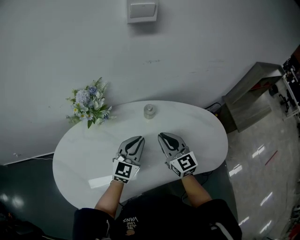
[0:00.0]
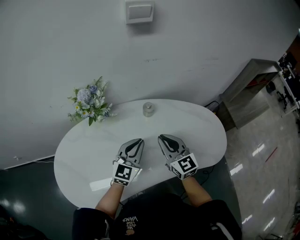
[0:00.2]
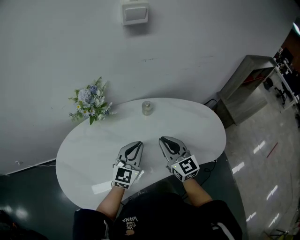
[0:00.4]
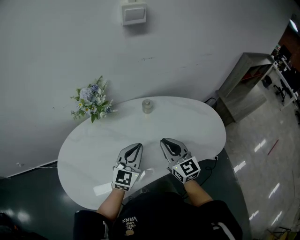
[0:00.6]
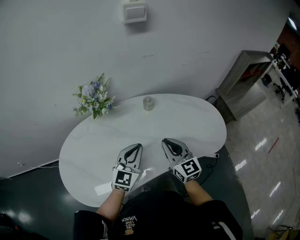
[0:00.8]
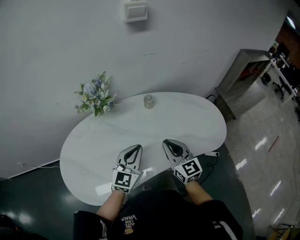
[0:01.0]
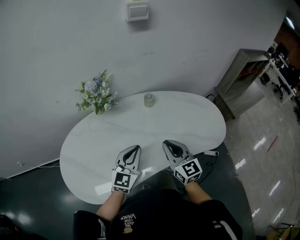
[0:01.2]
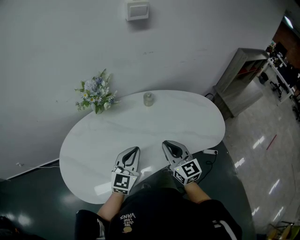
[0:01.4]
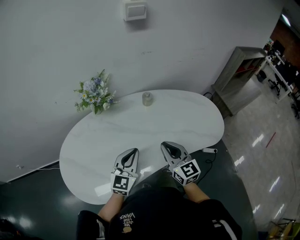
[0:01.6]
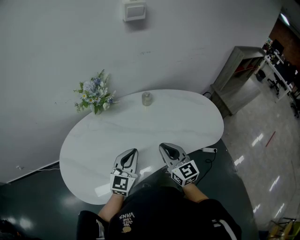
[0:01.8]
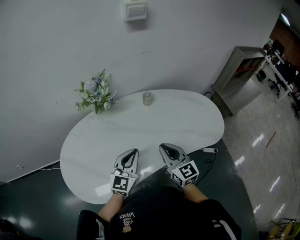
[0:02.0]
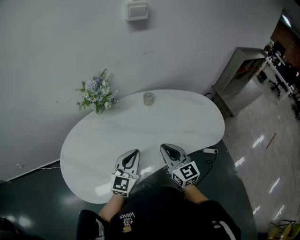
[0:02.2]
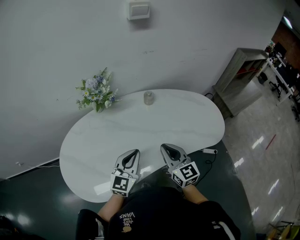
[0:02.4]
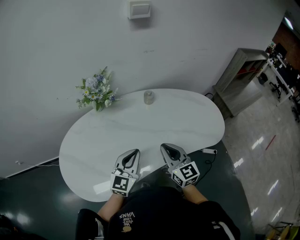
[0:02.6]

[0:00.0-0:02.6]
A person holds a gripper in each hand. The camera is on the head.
0:00.0 to 0:01.2: Both grippers move backward, roughly 15 cm.
0:01.2 to 0:02.6: The grippers move only a little.

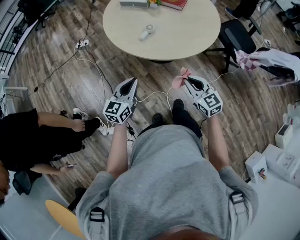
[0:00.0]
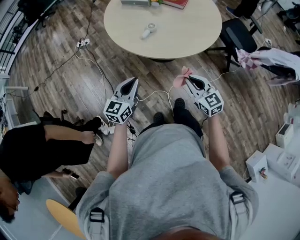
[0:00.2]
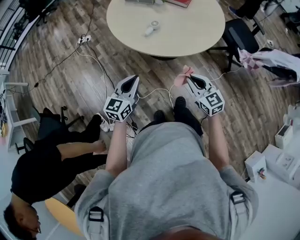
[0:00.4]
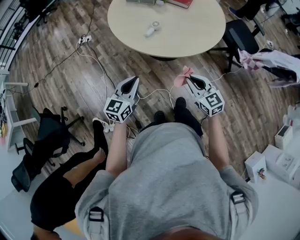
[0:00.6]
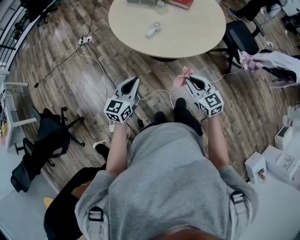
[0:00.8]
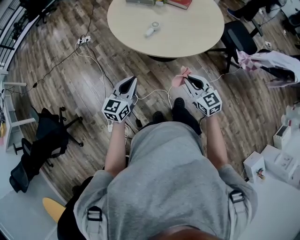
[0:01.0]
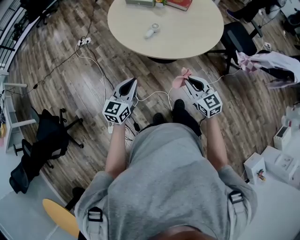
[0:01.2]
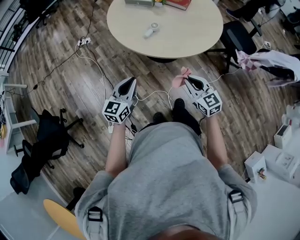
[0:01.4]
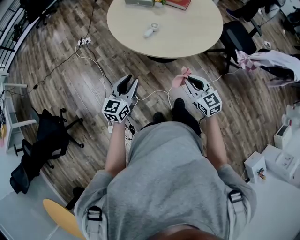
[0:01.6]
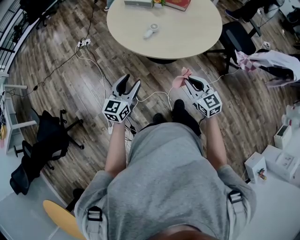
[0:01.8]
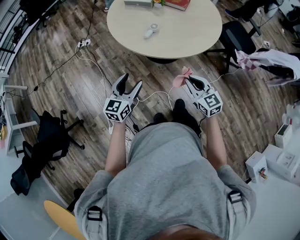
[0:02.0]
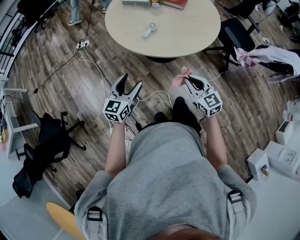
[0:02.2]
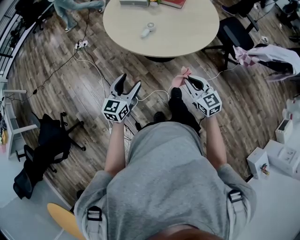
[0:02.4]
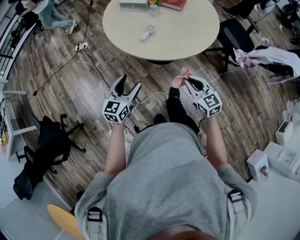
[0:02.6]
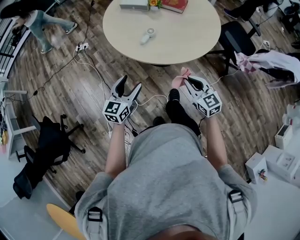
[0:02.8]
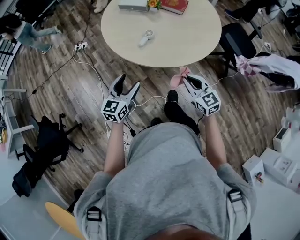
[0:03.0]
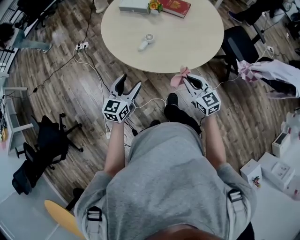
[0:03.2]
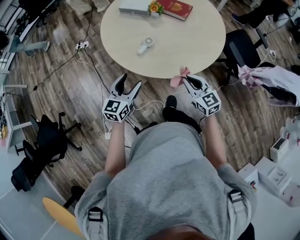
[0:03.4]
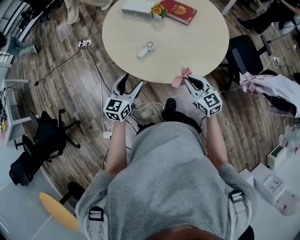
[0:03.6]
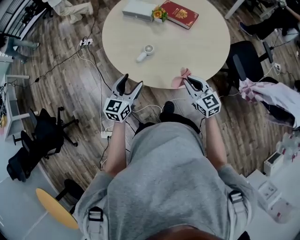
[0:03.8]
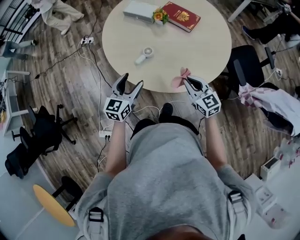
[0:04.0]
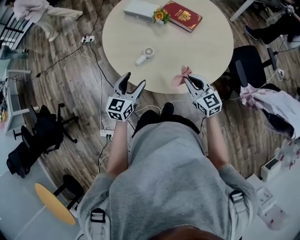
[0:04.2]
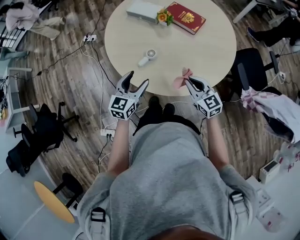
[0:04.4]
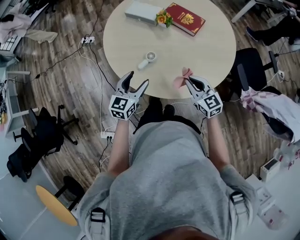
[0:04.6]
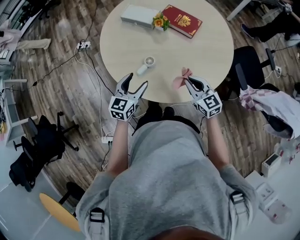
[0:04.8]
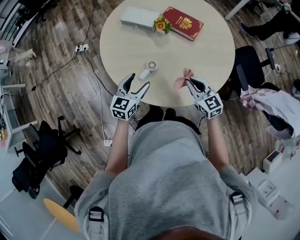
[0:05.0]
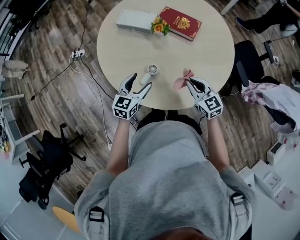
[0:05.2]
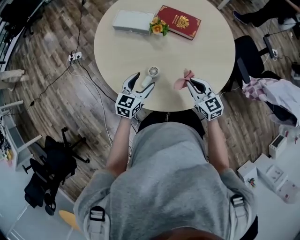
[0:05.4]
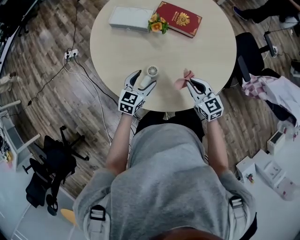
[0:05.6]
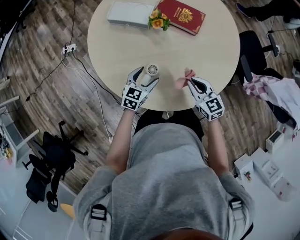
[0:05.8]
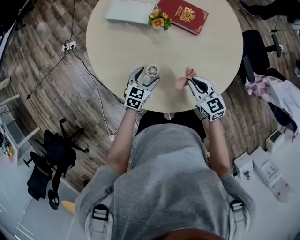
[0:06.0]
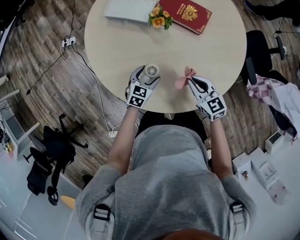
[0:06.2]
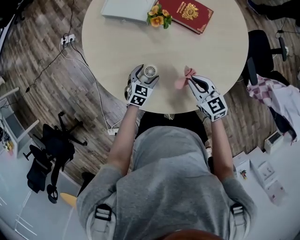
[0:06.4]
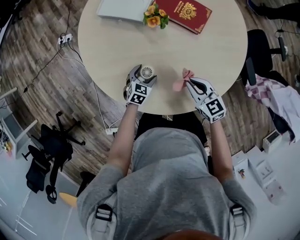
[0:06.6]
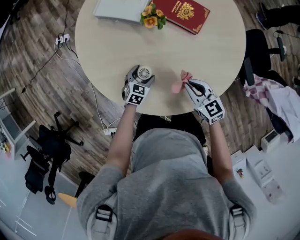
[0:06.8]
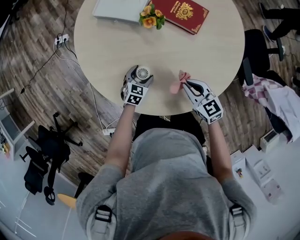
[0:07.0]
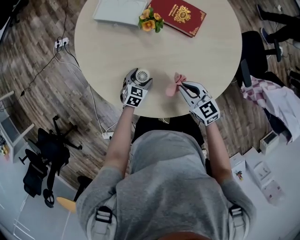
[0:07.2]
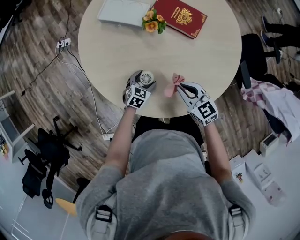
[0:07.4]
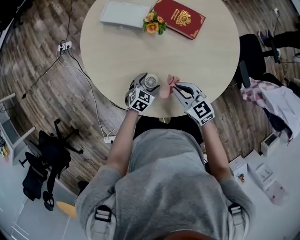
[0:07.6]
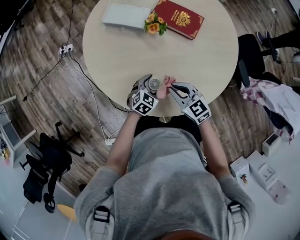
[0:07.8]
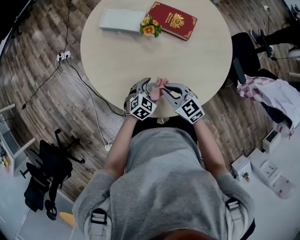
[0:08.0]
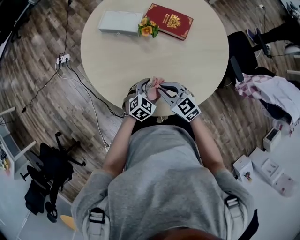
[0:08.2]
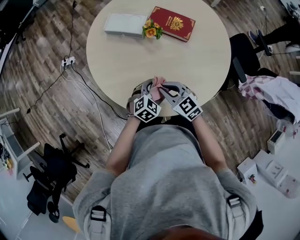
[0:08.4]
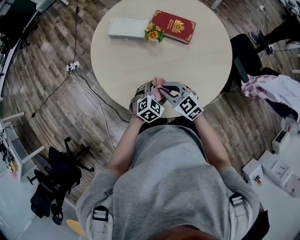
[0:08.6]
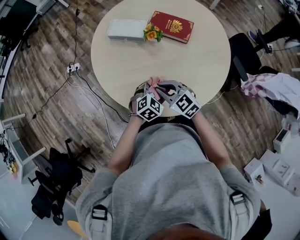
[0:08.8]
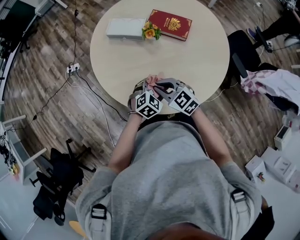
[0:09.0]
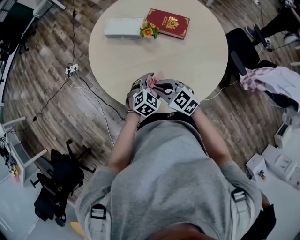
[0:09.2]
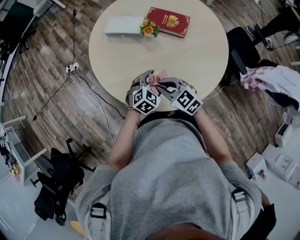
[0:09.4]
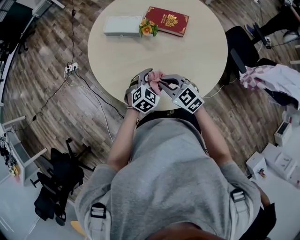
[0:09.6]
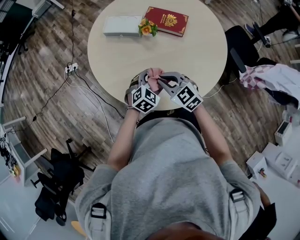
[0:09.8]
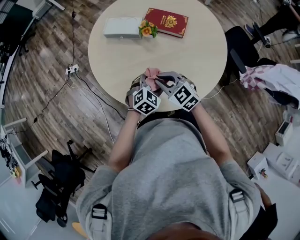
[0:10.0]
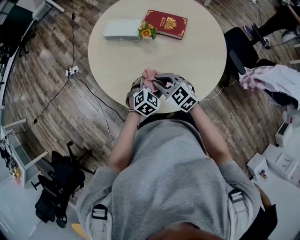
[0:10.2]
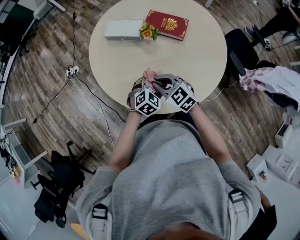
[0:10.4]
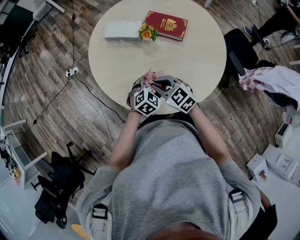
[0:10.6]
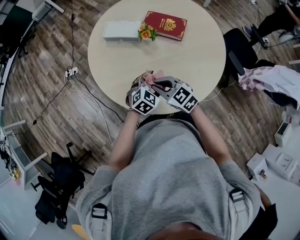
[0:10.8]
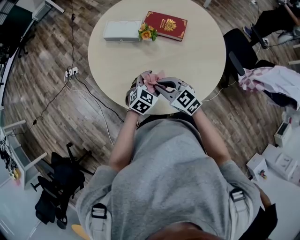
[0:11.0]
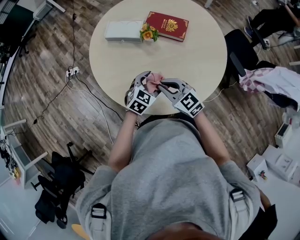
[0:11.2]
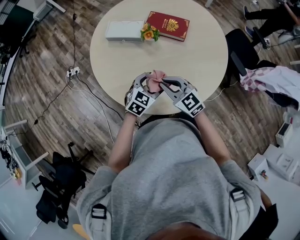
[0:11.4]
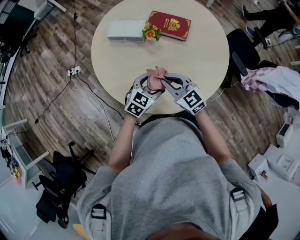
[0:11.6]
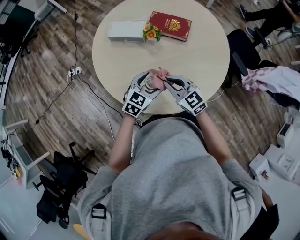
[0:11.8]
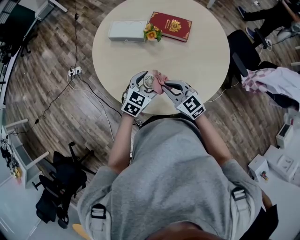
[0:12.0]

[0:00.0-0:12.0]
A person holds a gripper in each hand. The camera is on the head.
0:00.0 to 0:01.6: The grippers move only a little.
0:01.6 to 0:03.0: Both grippers move forward, approximately 10 cm. The left gripper opens up.
0:03.0 to 0:04.4: The grippers both shift forward and to the right by some 20 cm.
0:04.4 to 0:06.0: The right gripper moves forward and downward, about 15 cm; the left gripper goes approximately 25 cm downward and forward, and rotates about 30 degrees.
0:06.0 to 0:07.6: The left gripper heads downward, covering roughly 5 cm.
0:07.6 to 0:09.0: The right gripper shifts about 10 cm to the left and upward, while the left gripper moves upward and backward, approximately 15 cm, and changes its angle by about 20 degrees.
0:09.0 to 0:10.4: The grippers make only small movements.
0:10.4 to 0:12.0: The left gripper shifts some 5 cm to the left.

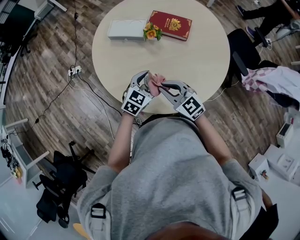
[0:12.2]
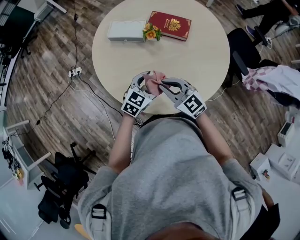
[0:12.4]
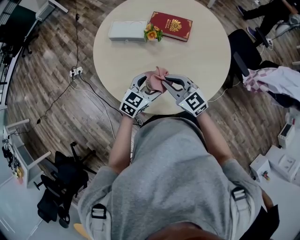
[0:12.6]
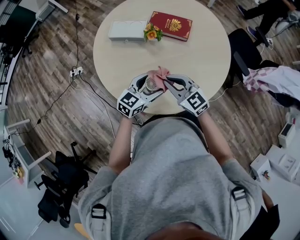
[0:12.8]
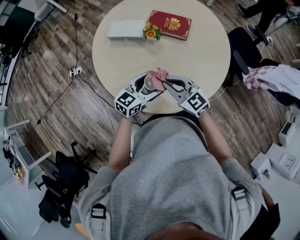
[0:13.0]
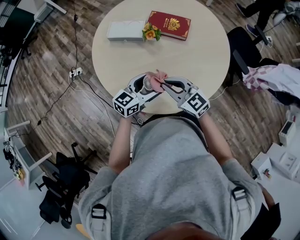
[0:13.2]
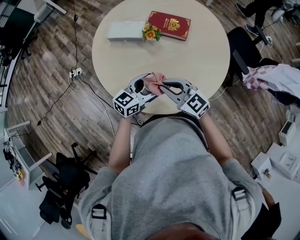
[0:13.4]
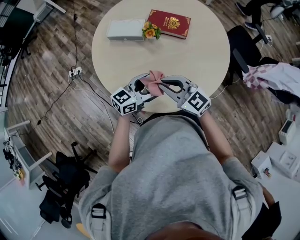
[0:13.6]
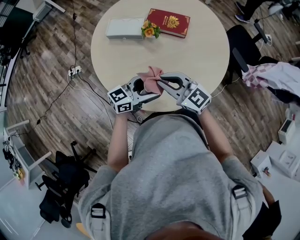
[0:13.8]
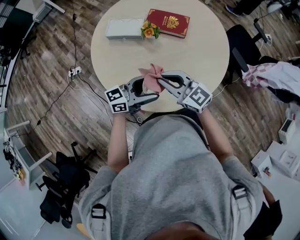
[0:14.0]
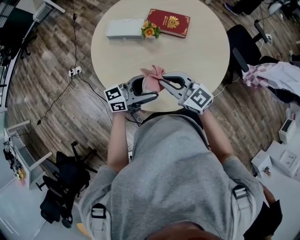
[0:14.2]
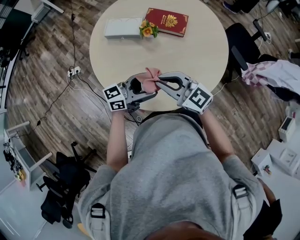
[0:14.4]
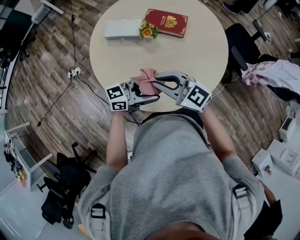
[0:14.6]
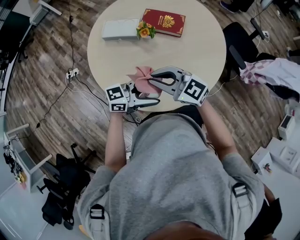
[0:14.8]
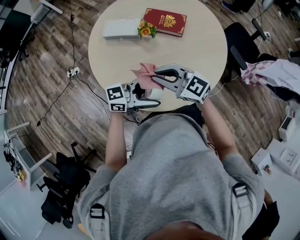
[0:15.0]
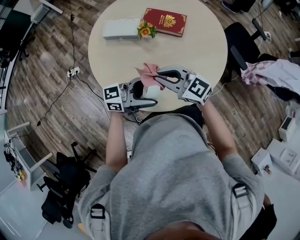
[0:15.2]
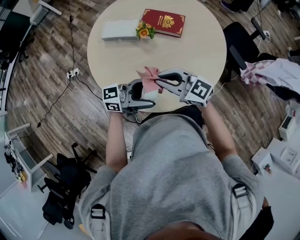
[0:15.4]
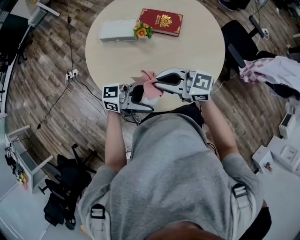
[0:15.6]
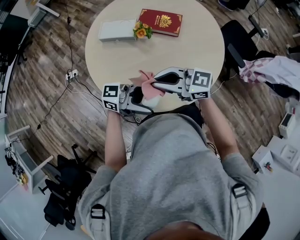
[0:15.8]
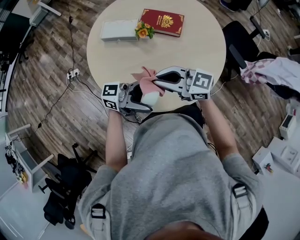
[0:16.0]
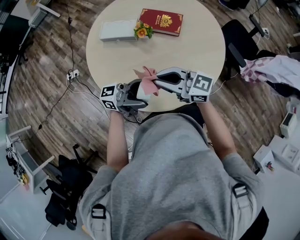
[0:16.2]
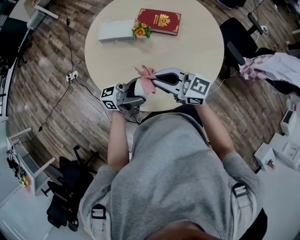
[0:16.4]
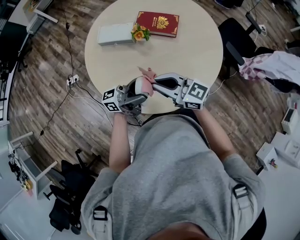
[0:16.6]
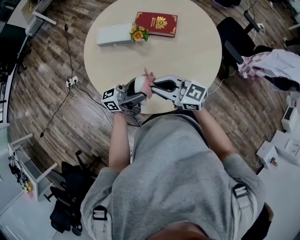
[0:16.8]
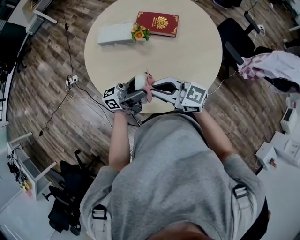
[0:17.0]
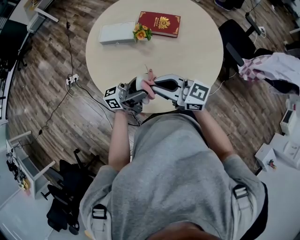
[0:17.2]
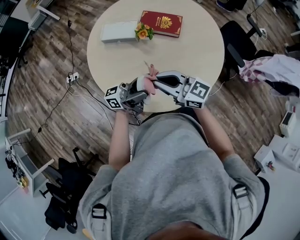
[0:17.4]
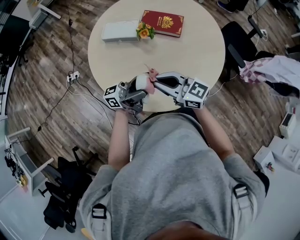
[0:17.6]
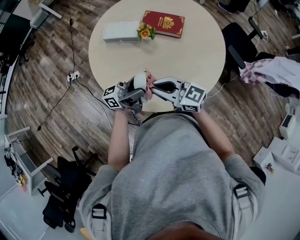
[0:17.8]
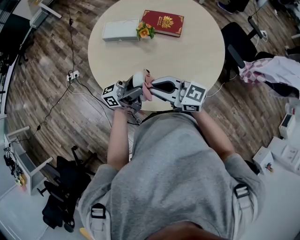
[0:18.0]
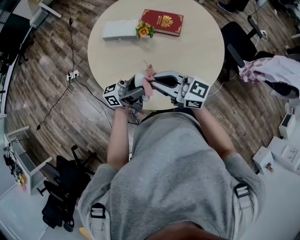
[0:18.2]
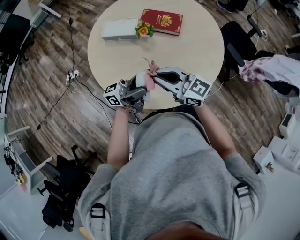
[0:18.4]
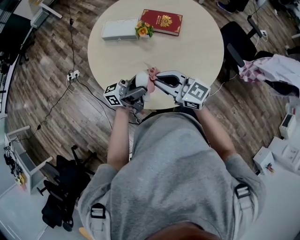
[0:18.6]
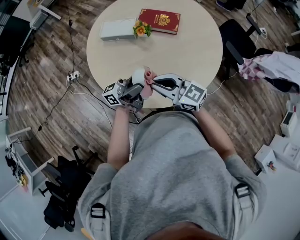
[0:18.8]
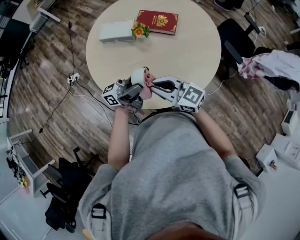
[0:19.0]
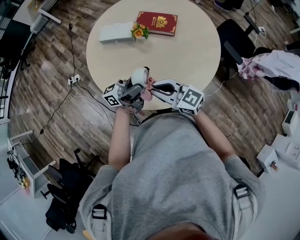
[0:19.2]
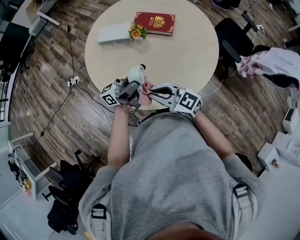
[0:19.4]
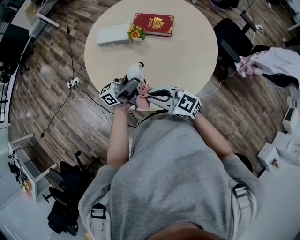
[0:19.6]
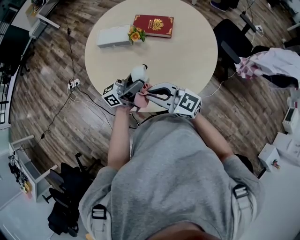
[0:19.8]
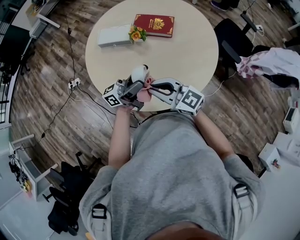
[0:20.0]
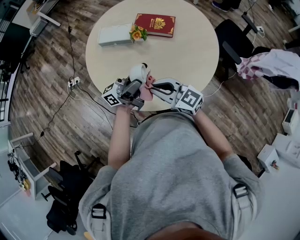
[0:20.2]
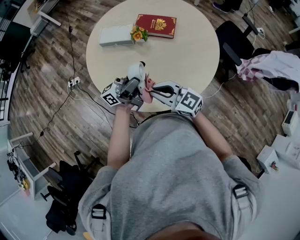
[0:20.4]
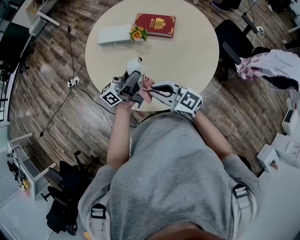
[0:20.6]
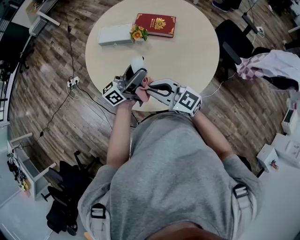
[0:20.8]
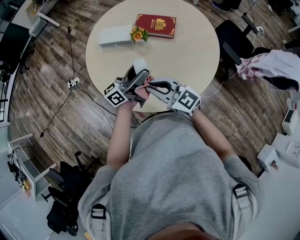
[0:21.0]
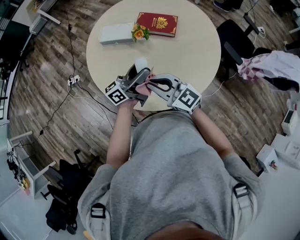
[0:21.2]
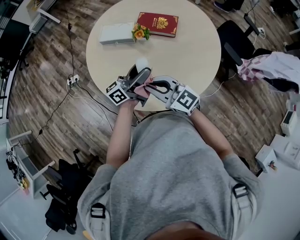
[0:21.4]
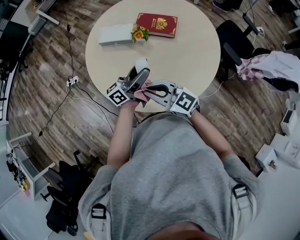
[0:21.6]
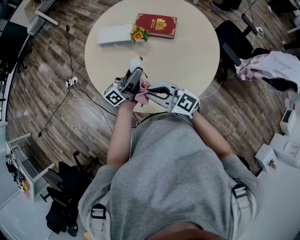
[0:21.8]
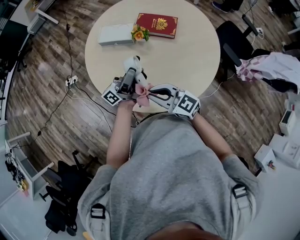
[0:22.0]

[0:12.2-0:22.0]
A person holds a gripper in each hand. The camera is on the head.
0:12.2 to 0:13.6: The left gripper shifts some 5 cm upward, and turns by about 30 degrees.
0:13.6 to 0:15.0: The left gripper changes place by roughly 10 cm, and turns by some 30 degrees.
0:15.0 to 0:16.4: The left gripper moves about 5 cm, and swivels about 30 degrees.
0:16.4 to 0:17.8: The right gripper moves approximately 5 cm.
0:17.8 to 0:19.2: The grippers move only a little.
0:19.2 to 0:20.6: The grippers move only a little.
0:20.6 to 0:22.0: The grippers make only small movements.
